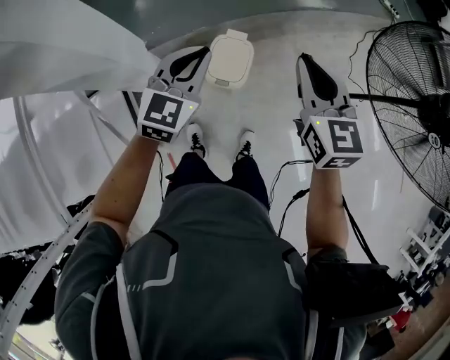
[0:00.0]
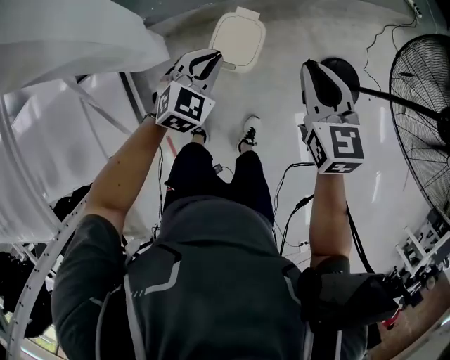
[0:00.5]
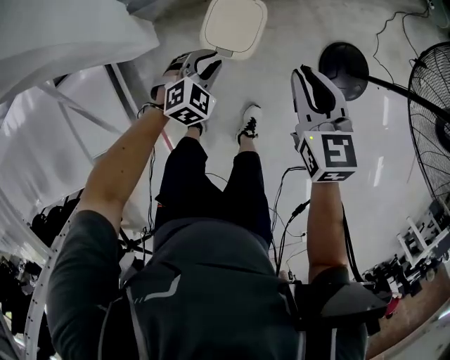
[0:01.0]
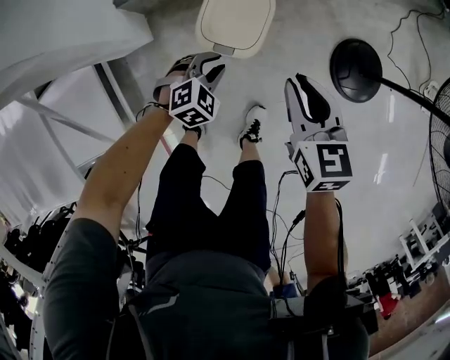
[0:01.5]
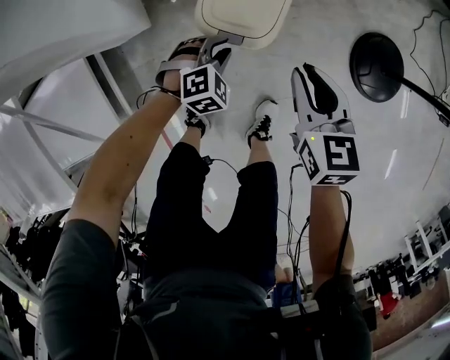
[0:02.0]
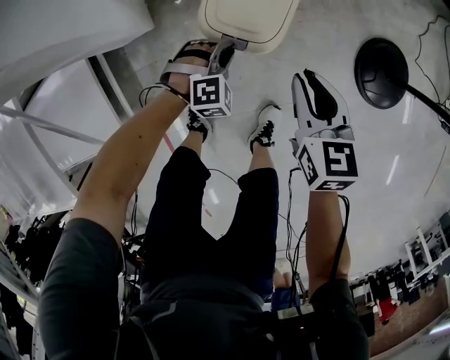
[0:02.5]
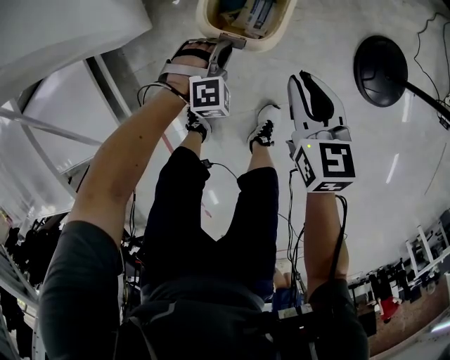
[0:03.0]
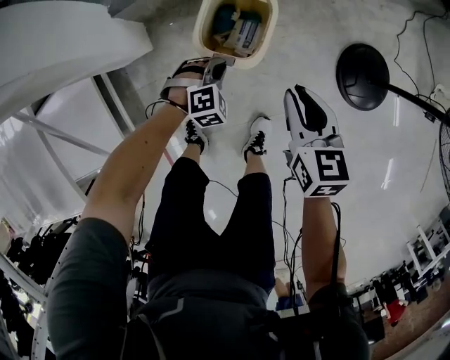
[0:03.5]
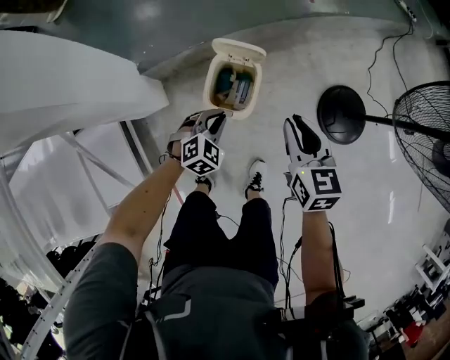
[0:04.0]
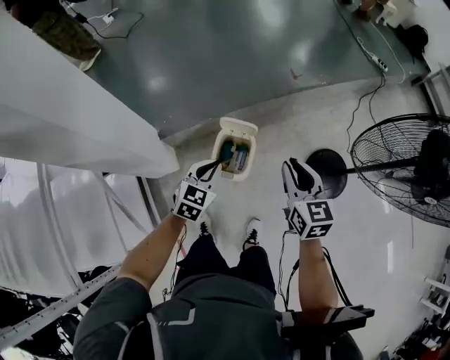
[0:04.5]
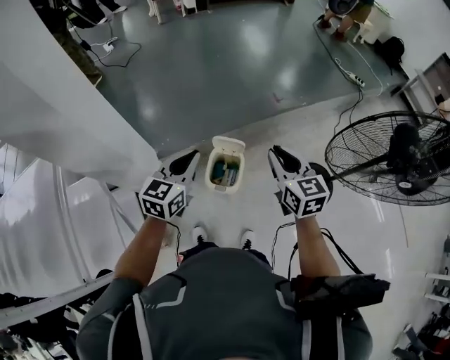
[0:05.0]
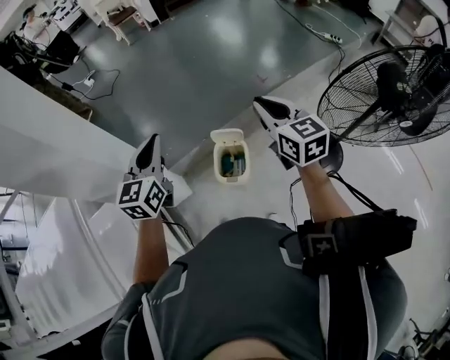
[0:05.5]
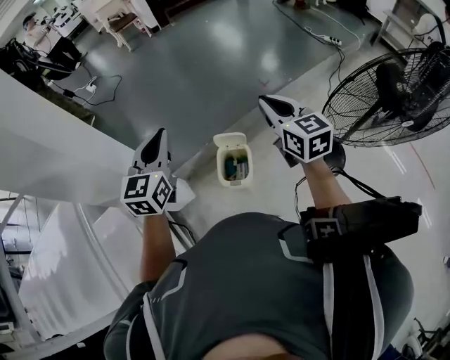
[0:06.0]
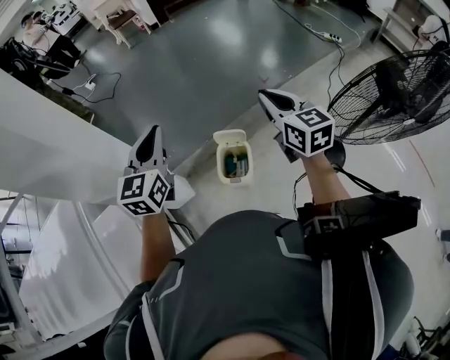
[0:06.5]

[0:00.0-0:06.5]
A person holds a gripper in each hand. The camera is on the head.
0:00.0 to 0:02.0: The grippers both shift downward by some 60 cm. The right gripper changes its angle by some 20 degrees. The left gripper tips its fingers downward by roughly 40 degrees, and opens its fingers.
0:02.0 to 0:04.5: Both grippers travel together upward, approximately 40 cm. The left gripper swivels roughly 40 degrees, and closes up.
0:04.5 to 0:06.5: The left gripper moves upward, roughly 35 cm, and changes its angle by about 30 degrees; the right gripper is displaced upward by some 20 cm.

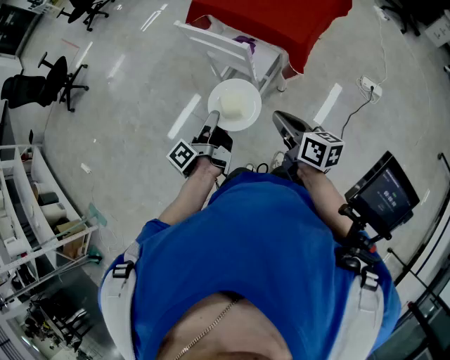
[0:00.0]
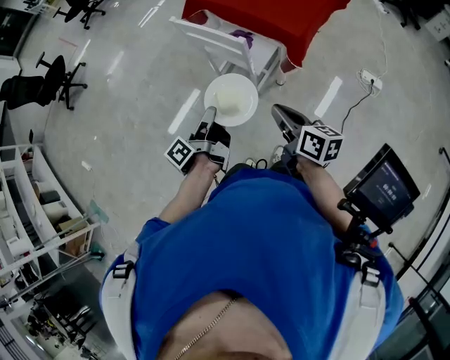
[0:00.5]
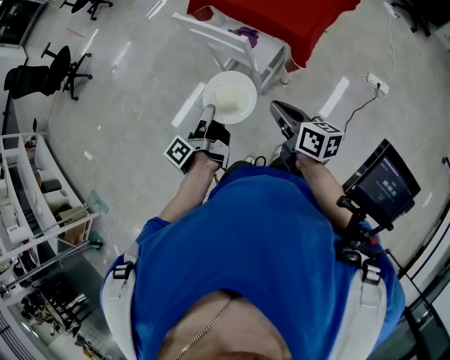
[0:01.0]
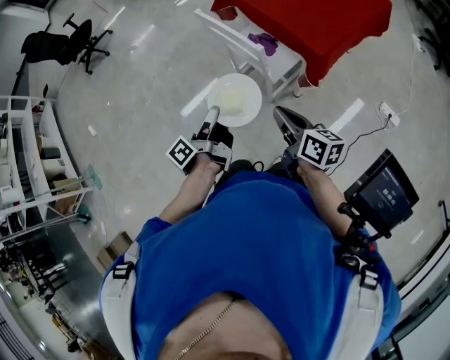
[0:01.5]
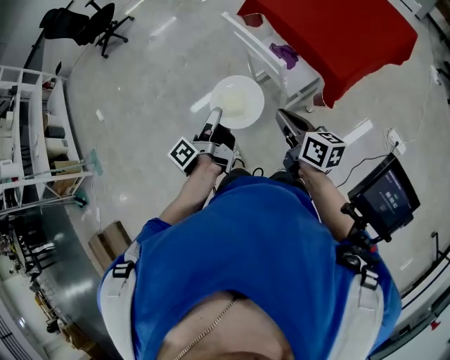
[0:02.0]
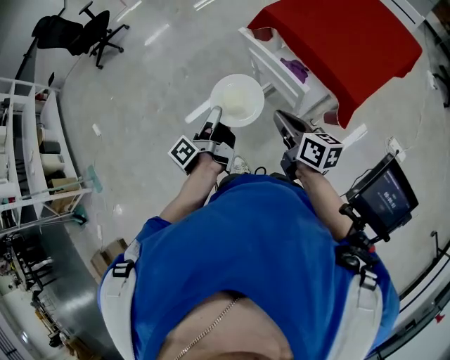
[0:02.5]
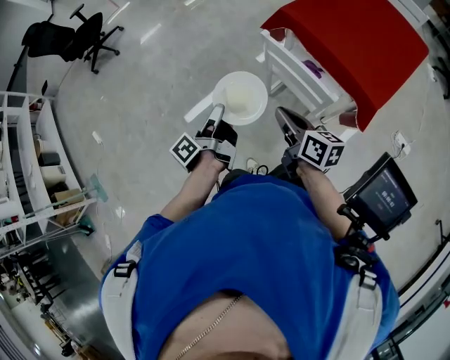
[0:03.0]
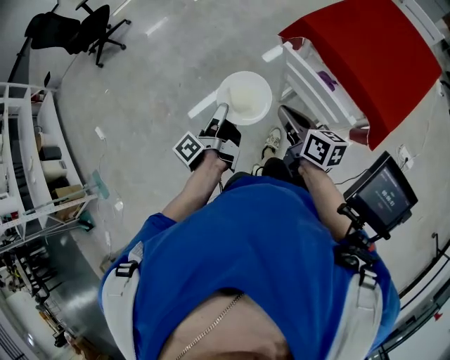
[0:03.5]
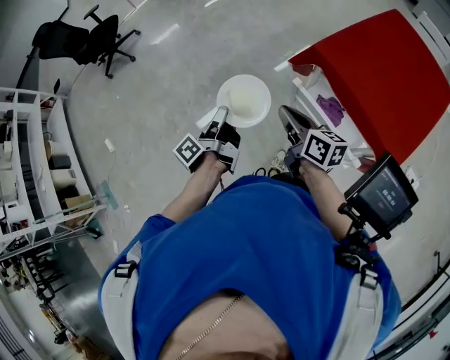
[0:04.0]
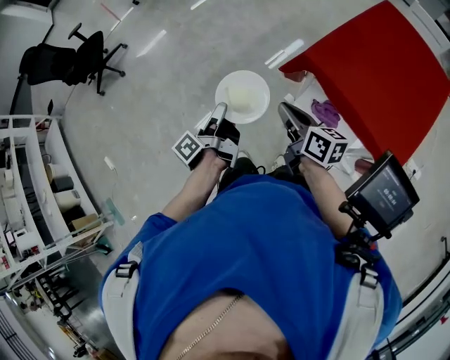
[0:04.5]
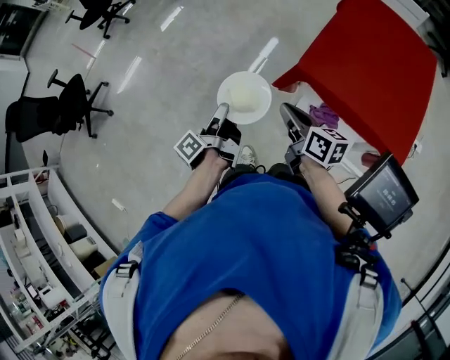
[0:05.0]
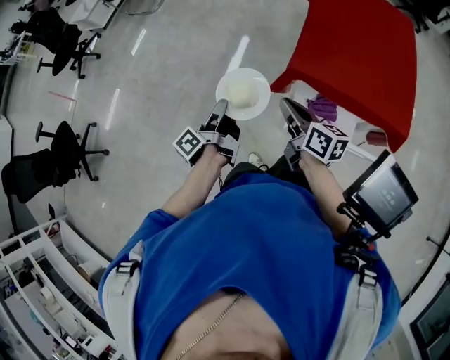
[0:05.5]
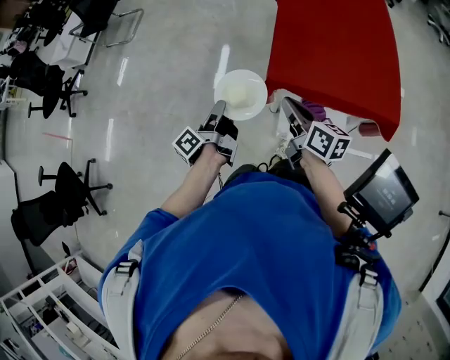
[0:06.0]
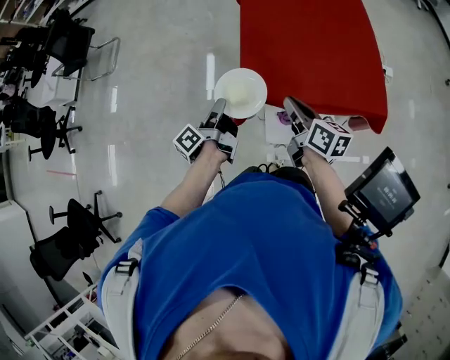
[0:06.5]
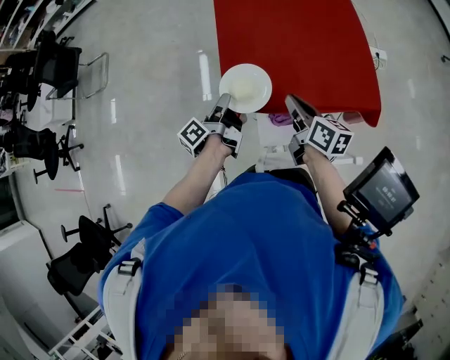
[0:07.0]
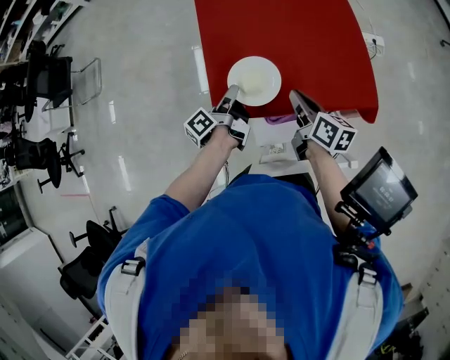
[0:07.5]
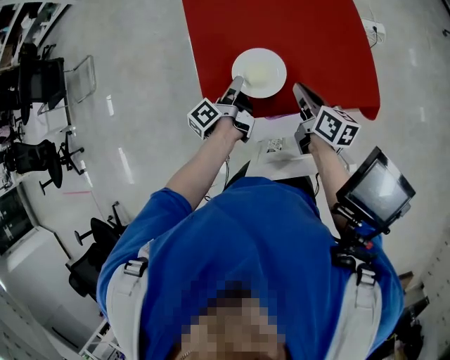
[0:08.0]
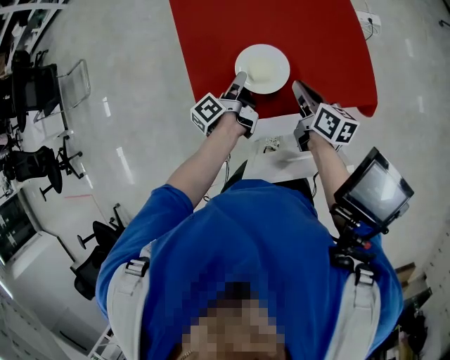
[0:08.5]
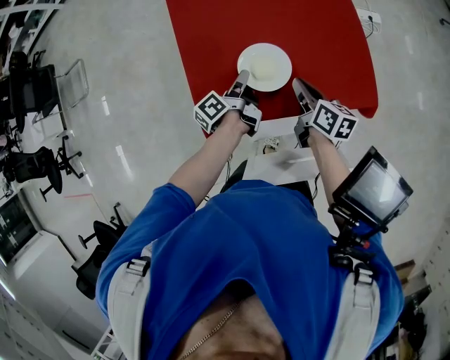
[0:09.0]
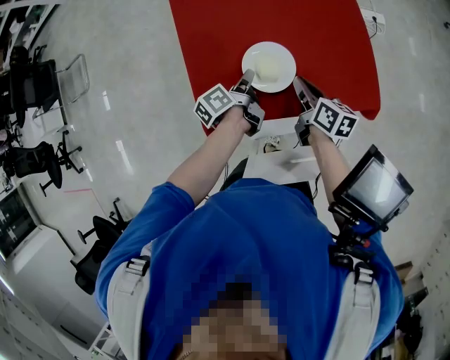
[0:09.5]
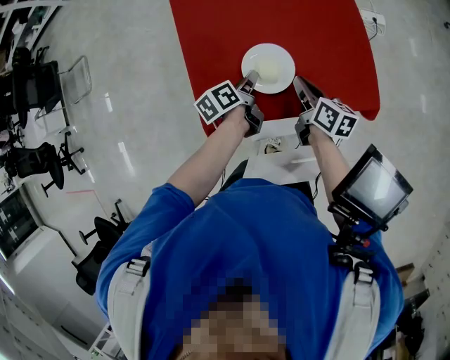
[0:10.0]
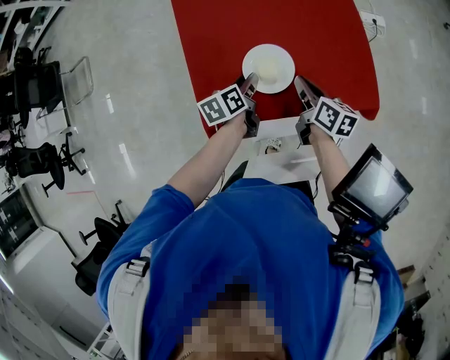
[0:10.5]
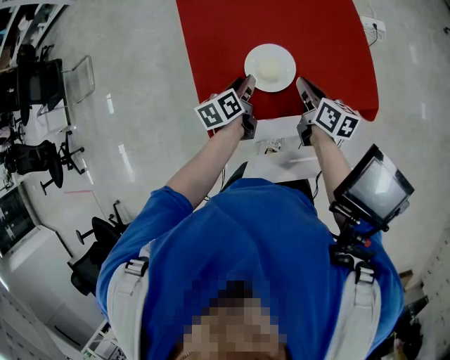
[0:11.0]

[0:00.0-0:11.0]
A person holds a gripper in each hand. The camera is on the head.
0:00.0 to 0:02.0: The right gripper ends up some 10 cm from where it was.
0:02.0 to 0:03.5: The right gripper shifts by roughly 30 cm.
0:03.5 to 0:05.5: The right gripper shifts by approximately 20 cm, and changes its angle by approximately 40 degrees.
0:05.5 to 0:07.5: The right gripper ends up approximately 15 cm from where it was, and swivels approximately 30 degrees.

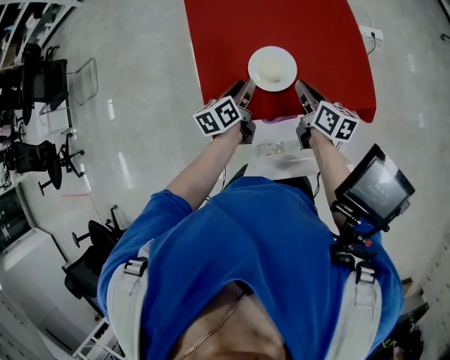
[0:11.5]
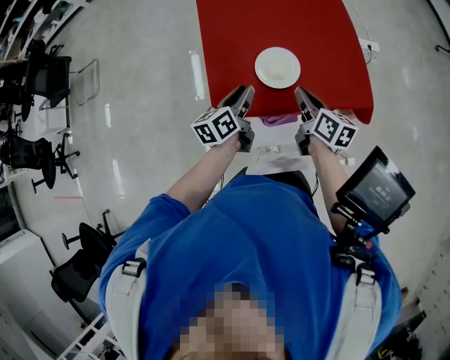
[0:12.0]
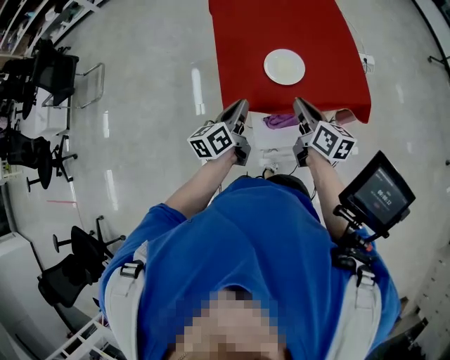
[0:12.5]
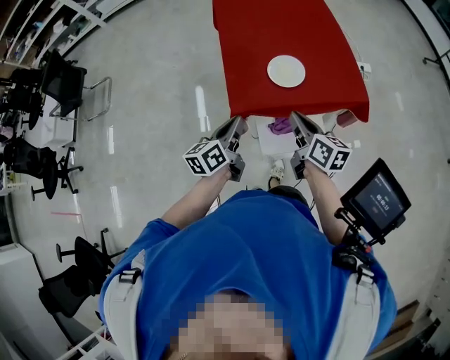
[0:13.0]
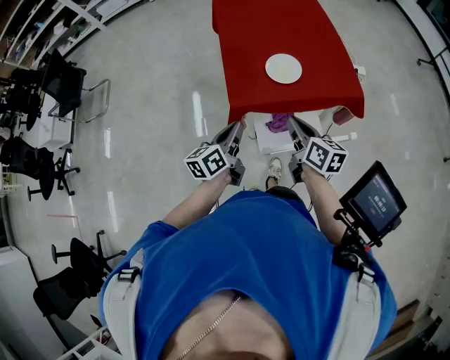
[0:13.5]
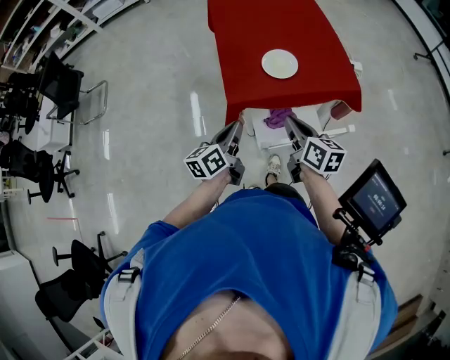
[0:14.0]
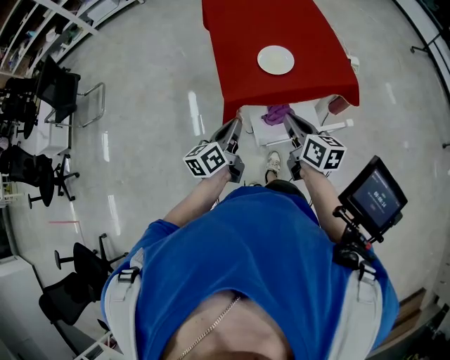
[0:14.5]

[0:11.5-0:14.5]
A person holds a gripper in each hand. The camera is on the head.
0:11.5 to 0:13.0: The right gripper moves upward, about 5 cm.

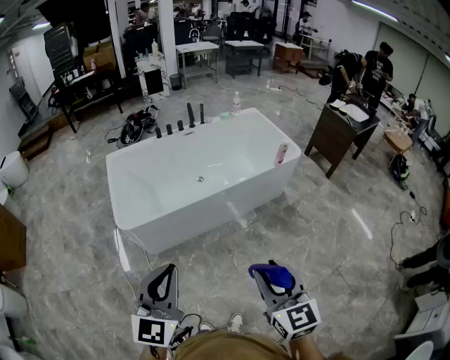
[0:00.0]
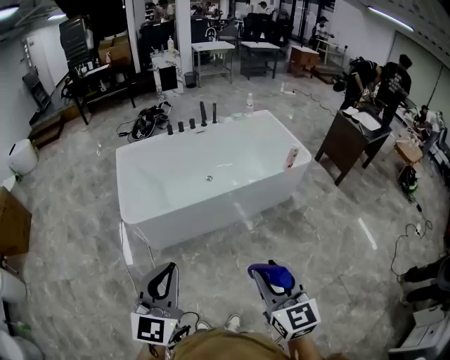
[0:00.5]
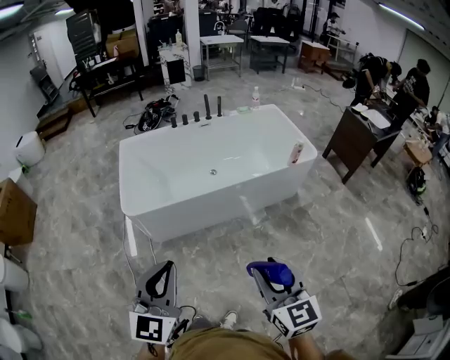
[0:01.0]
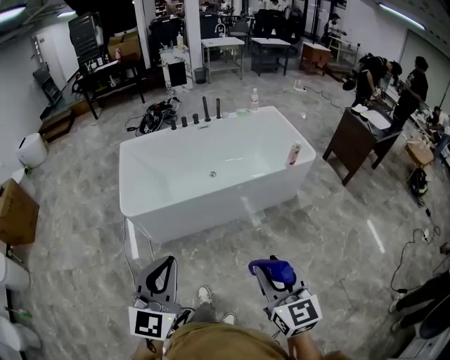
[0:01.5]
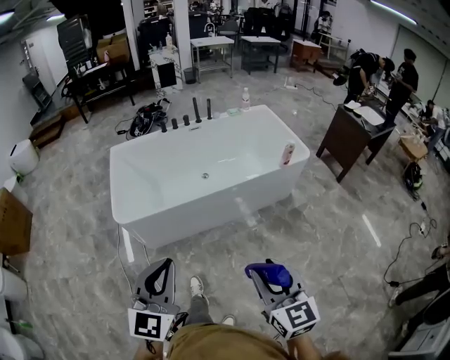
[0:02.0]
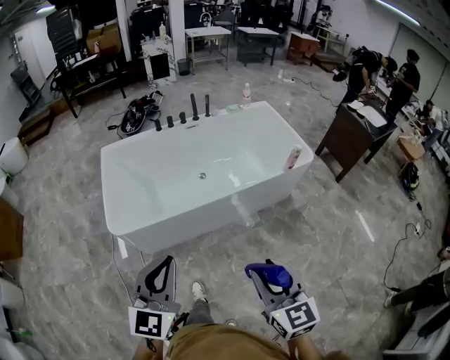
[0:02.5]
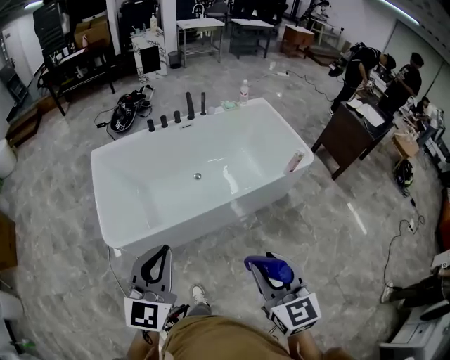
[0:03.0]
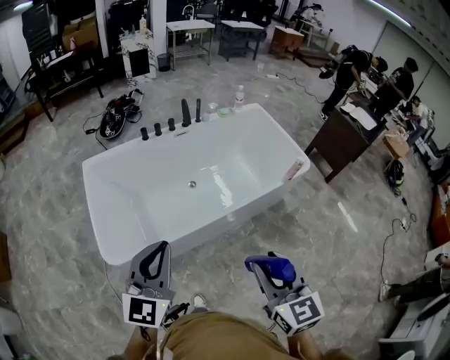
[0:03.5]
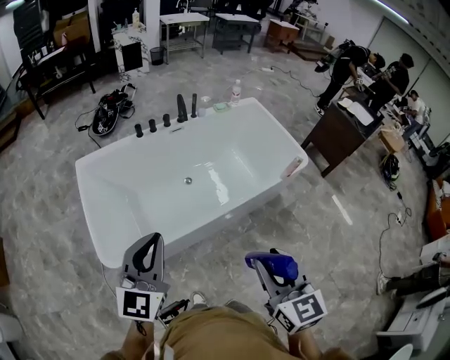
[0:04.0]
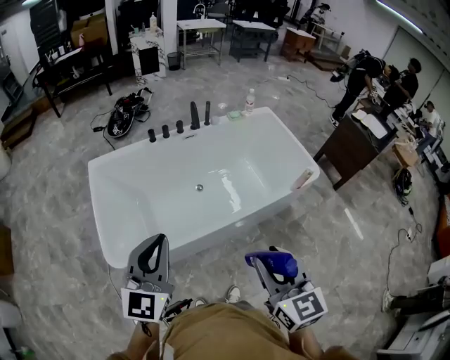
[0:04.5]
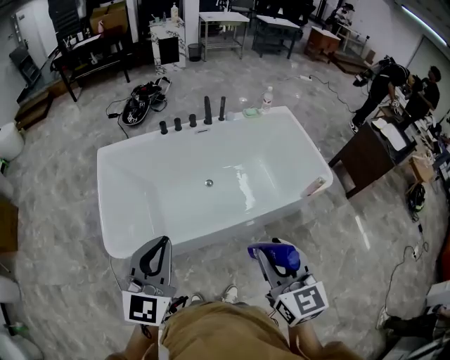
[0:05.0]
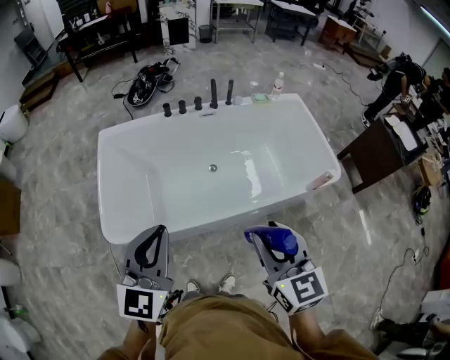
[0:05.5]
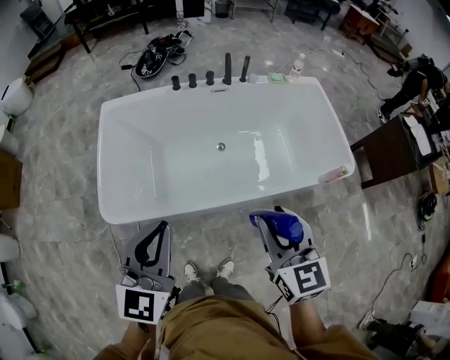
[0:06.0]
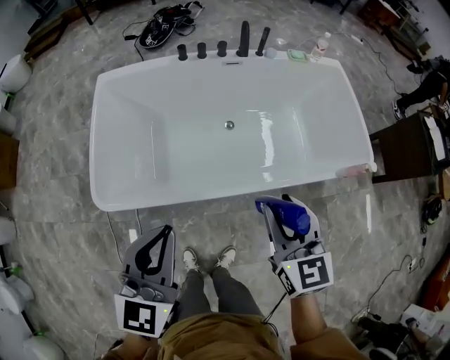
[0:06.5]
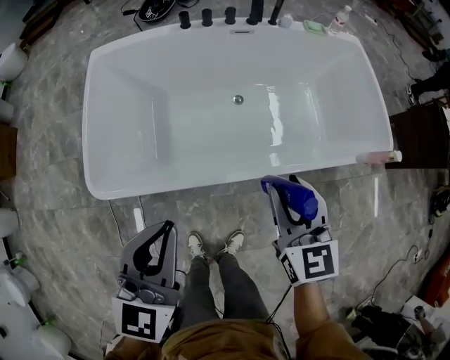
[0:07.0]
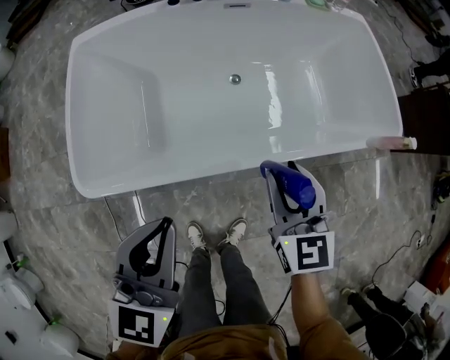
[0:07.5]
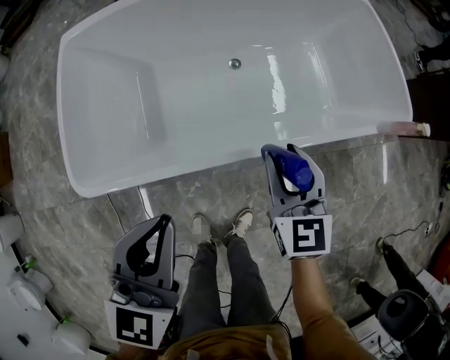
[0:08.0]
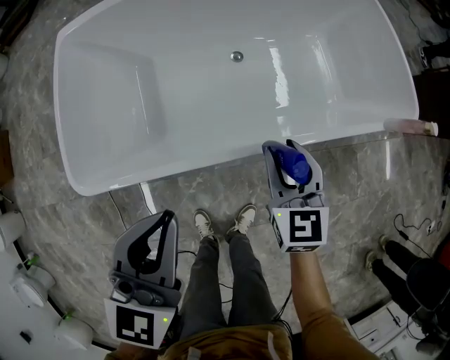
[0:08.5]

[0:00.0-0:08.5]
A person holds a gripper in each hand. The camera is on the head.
0:00.0 to 0:02.0: Both grippers travel together to the right, approximately 10 cm.
0:02.0 to 0:04.0: Both grippers travel together forward and to the left, approximately 35 cm.
0:04.0 to 0:06.5: The left gripper shifts about 15 cm downward, forward and to the right, and changes its angle by some 20 degrees; the right gripper shifts approximately 30 cm forward and downward.
0:06.5 to 0:08.5: The left gripper moves downward, some 15 cm, while the right gripper is displaced downward by roughly 25 cm.
